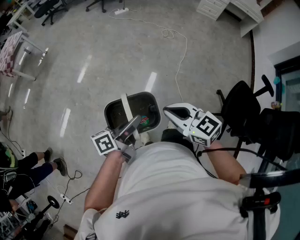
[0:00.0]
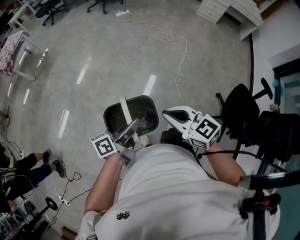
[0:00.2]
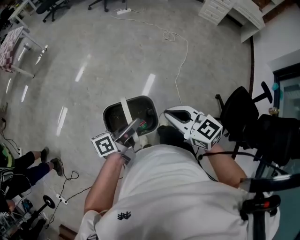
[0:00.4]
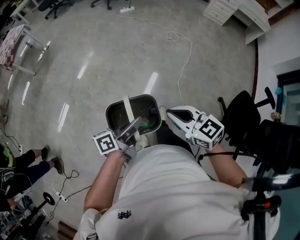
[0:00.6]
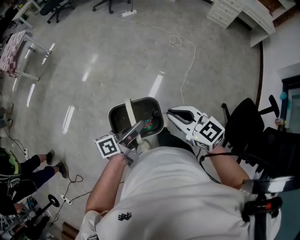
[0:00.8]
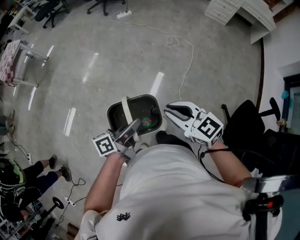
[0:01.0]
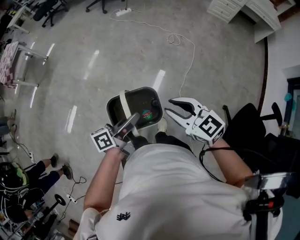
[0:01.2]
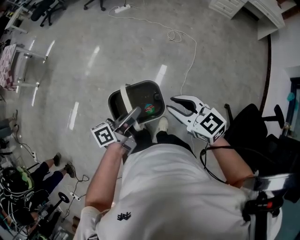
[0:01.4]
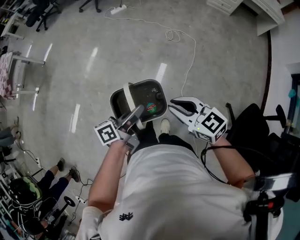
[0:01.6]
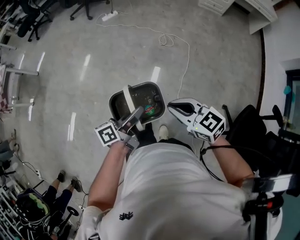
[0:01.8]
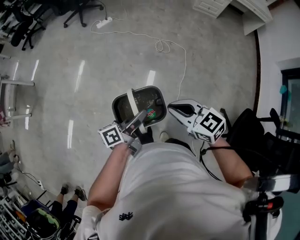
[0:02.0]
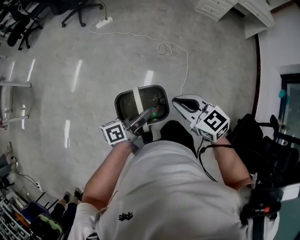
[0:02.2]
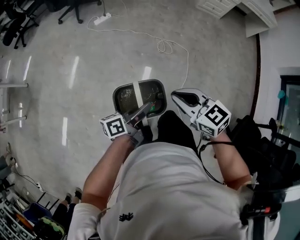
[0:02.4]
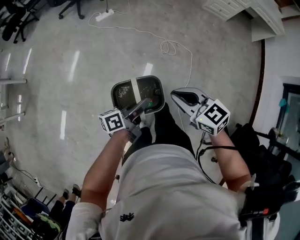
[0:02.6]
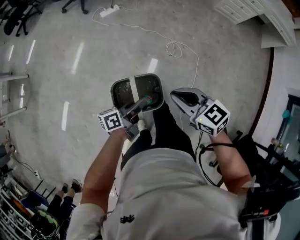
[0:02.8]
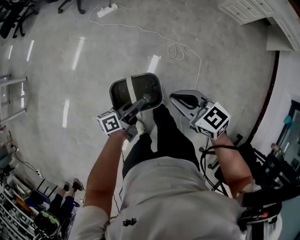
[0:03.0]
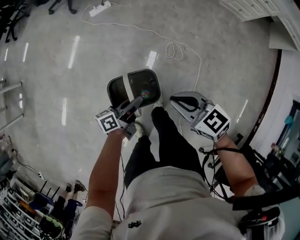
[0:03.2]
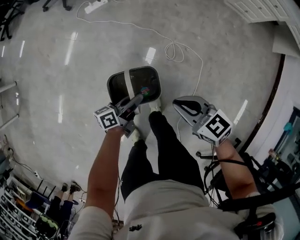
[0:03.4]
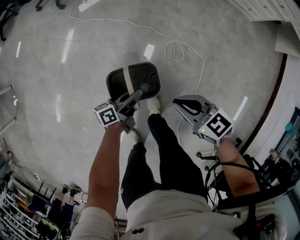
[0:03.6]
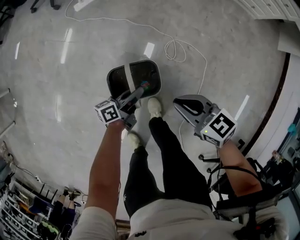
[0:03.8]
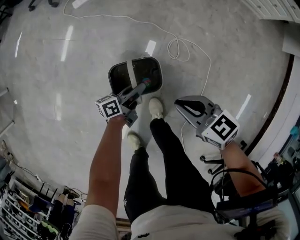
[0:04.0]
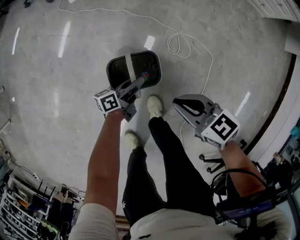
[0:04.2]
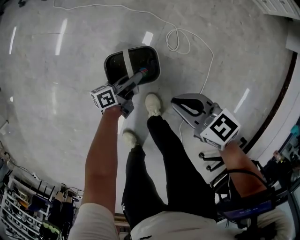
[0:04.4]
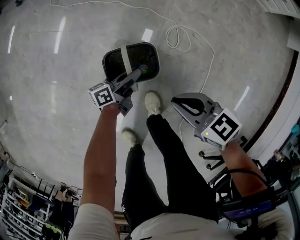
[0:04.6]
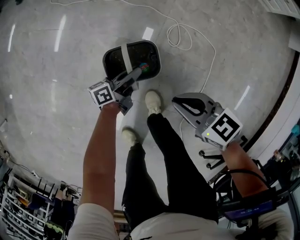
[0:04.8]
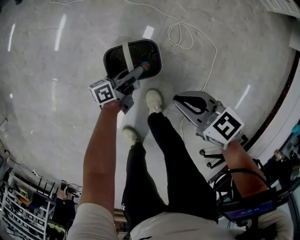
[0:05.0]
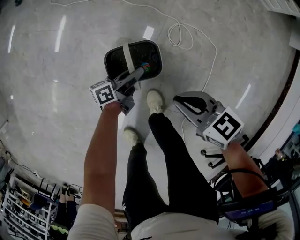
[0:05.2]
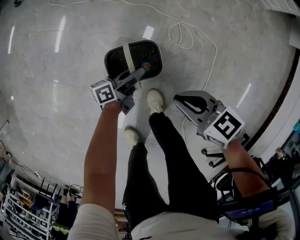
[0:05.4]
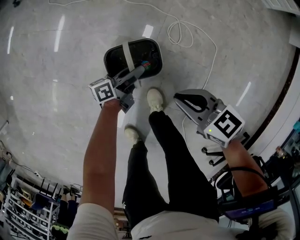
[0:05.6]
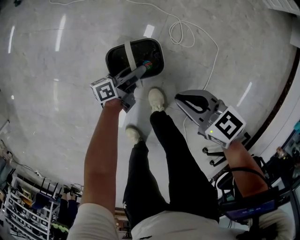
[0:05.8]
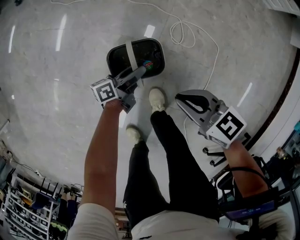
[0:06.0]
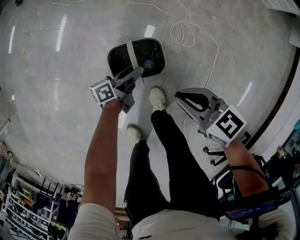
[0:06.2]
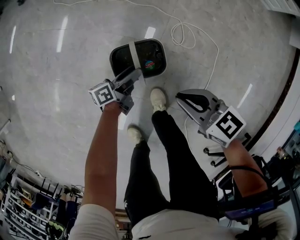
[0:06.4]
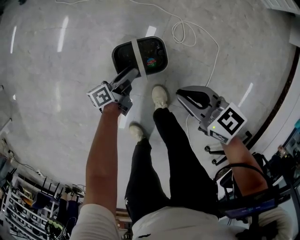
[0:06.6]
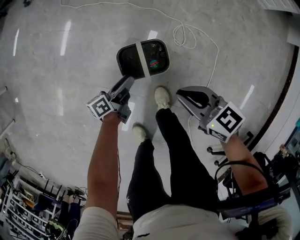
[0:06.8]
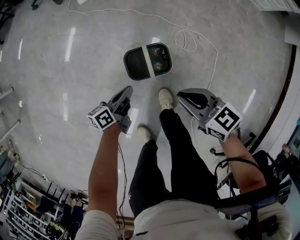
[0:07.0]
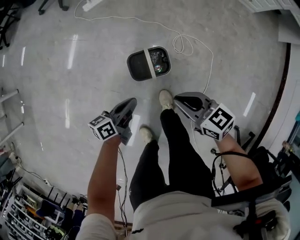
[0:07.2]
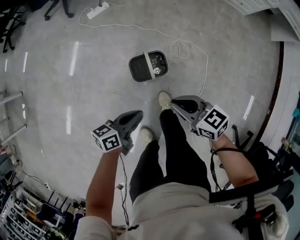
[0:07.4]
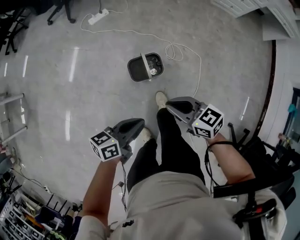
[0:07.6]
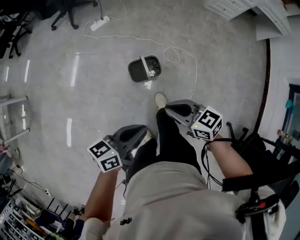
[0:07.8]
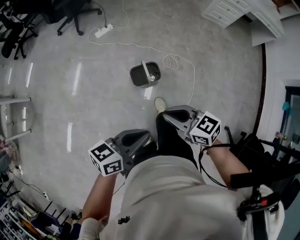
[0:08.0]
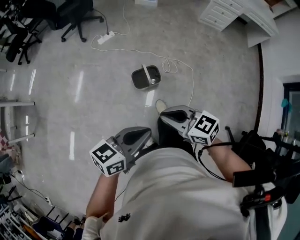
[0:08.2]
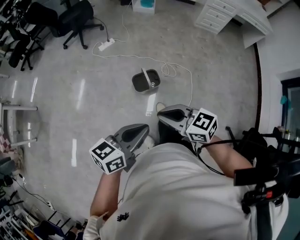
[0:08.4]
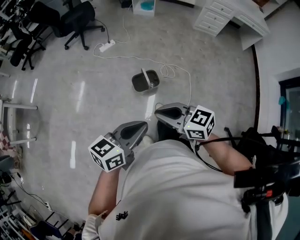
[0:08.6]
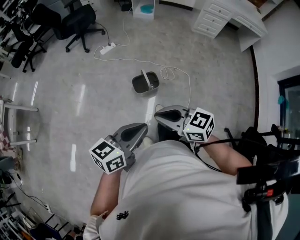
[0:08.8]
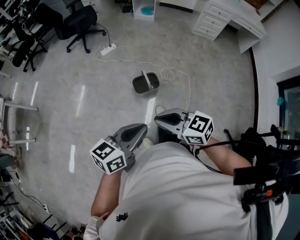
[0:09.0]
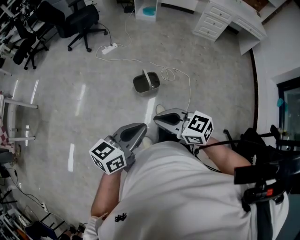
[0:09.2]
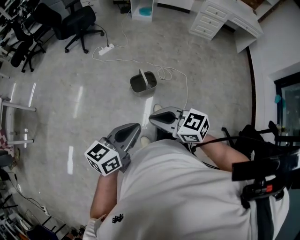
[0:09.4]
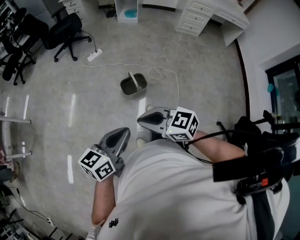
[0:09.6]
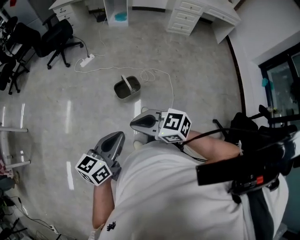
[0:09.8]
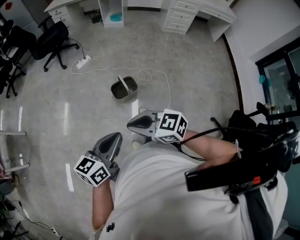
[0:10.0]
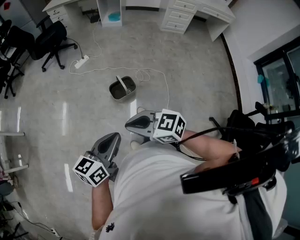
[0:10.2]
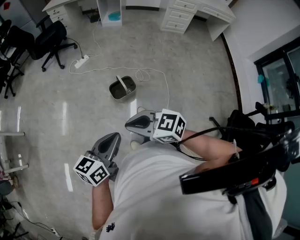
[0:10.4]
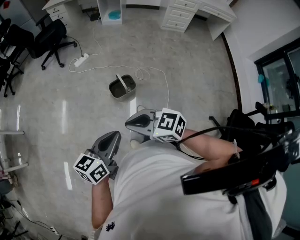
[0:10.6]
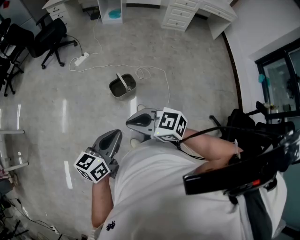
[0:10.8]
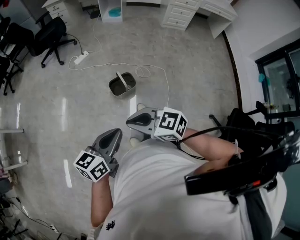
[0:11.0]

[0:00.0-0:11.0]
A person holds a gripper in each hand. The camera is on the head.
0:00.0 to 0:01.6: The two grippers go approximately 35 cm forward.
0:01.6 to 0:03.2: The pair of grippers is taken forward, roughly 50 cm. The left gripper is displaced downward by roughly 25 cm.
0:03.2 to 0:04.8: Both grippers travel together downward, some 30 cm.
0:04.8 to 0:06.2: The left gripper opens its fingers.
0:06.2 to 0:07.8: The left gripper moves upward, about 50 cm, swivels about 30 degrees, and closes. The right gripper moves upward, about 30 cm.
0:07.8 to 0:09.4: The right gripper ends up roughly 30 cm from where it was. The left gripper changes place by some 25 cm, and turns by roughly 20 degrees.
0:09.4 to 0:11.0: The grippers stay close to where they were, moving slightly.

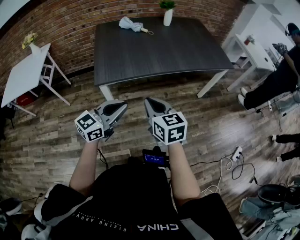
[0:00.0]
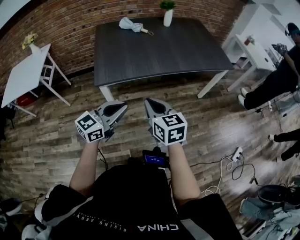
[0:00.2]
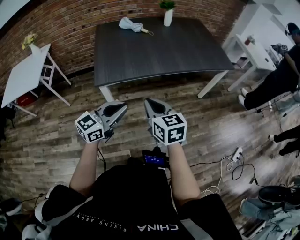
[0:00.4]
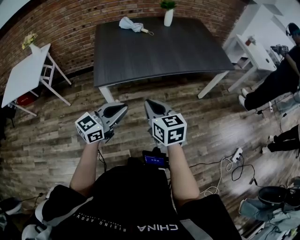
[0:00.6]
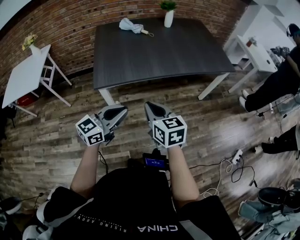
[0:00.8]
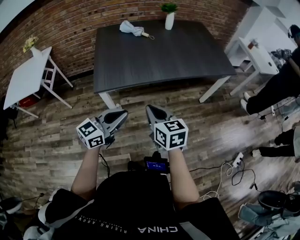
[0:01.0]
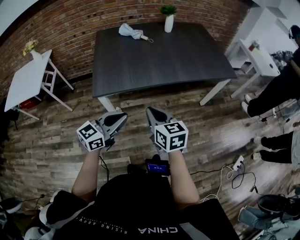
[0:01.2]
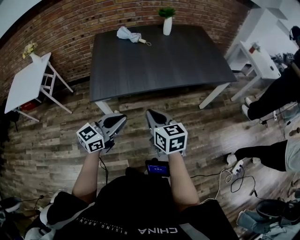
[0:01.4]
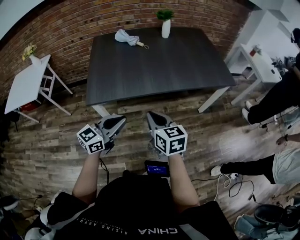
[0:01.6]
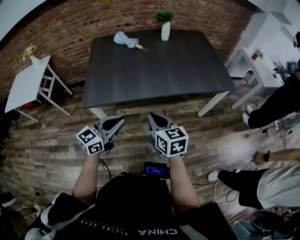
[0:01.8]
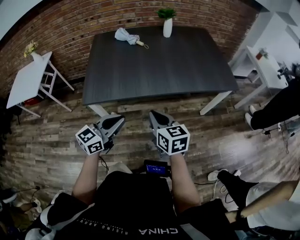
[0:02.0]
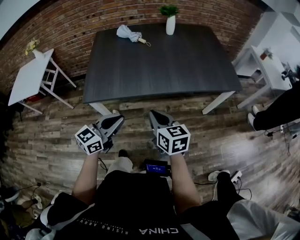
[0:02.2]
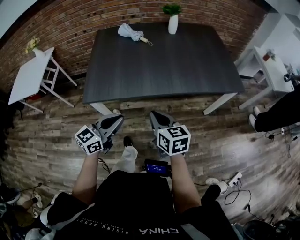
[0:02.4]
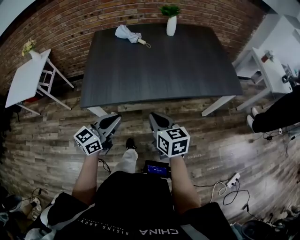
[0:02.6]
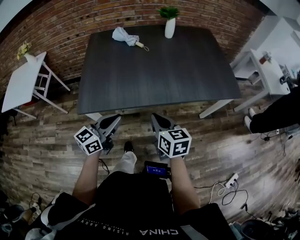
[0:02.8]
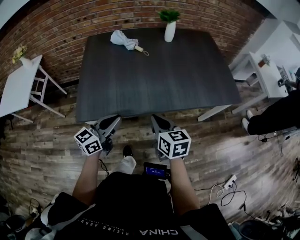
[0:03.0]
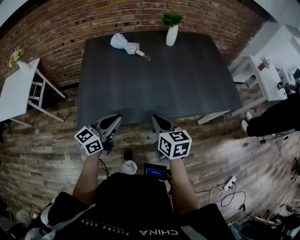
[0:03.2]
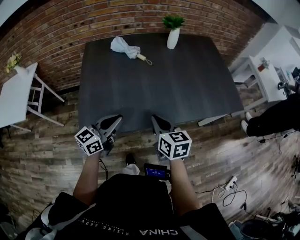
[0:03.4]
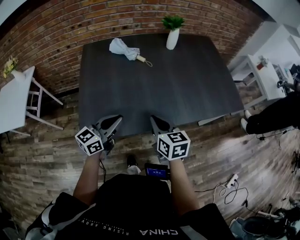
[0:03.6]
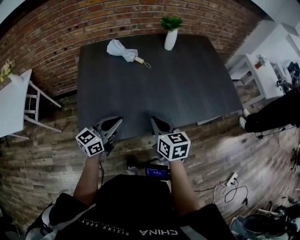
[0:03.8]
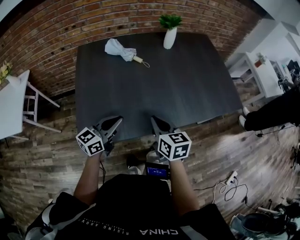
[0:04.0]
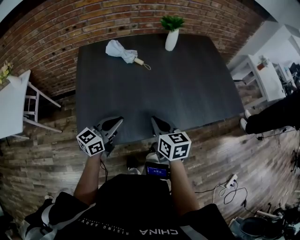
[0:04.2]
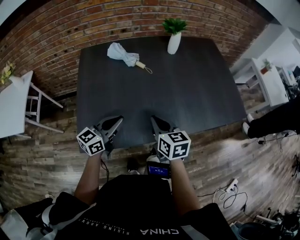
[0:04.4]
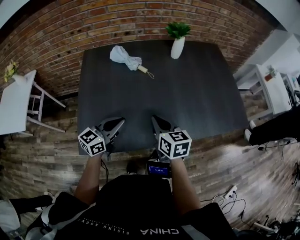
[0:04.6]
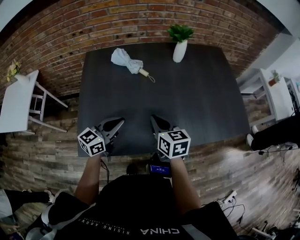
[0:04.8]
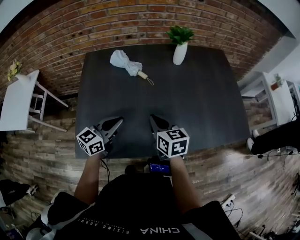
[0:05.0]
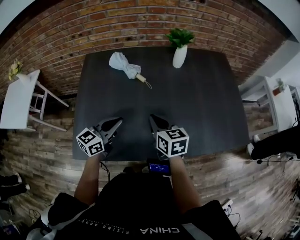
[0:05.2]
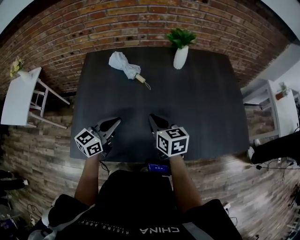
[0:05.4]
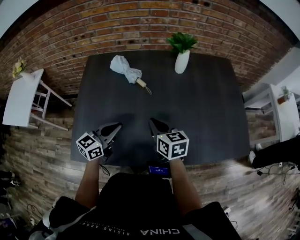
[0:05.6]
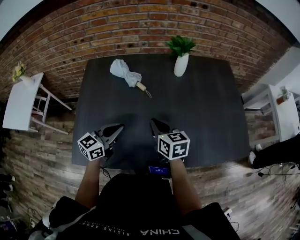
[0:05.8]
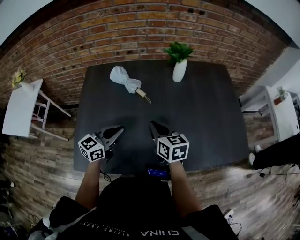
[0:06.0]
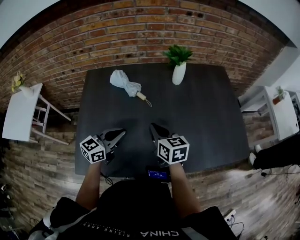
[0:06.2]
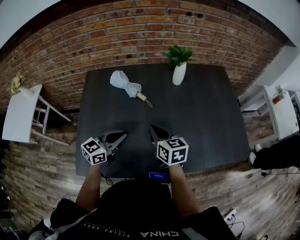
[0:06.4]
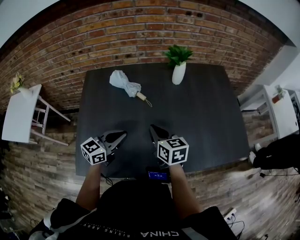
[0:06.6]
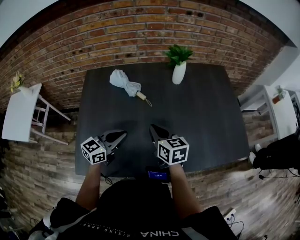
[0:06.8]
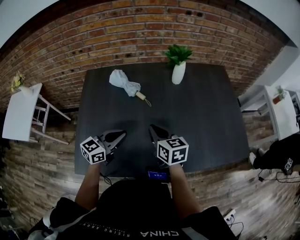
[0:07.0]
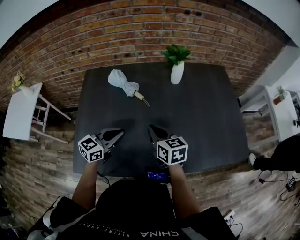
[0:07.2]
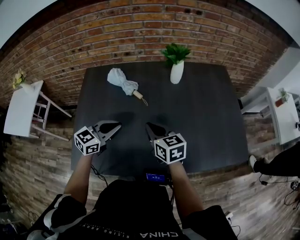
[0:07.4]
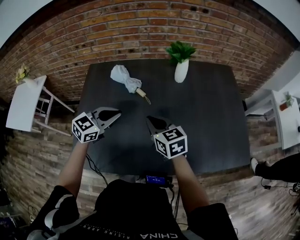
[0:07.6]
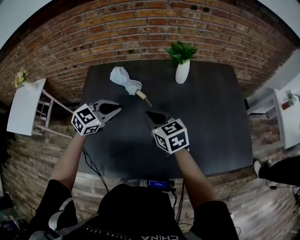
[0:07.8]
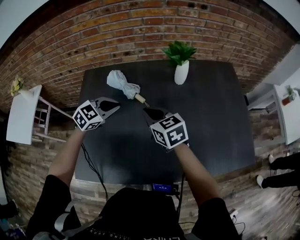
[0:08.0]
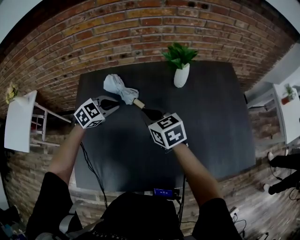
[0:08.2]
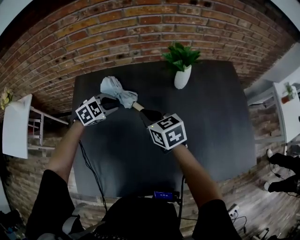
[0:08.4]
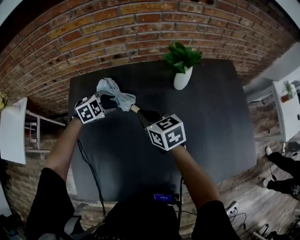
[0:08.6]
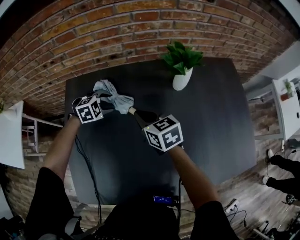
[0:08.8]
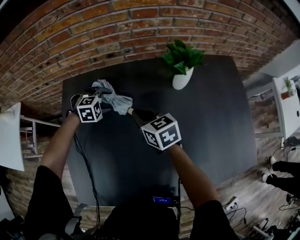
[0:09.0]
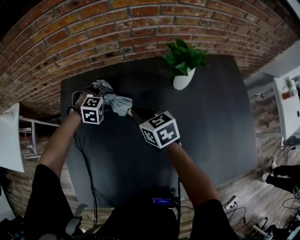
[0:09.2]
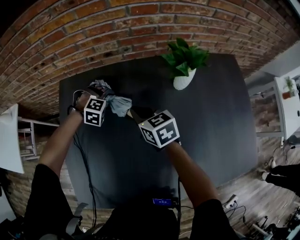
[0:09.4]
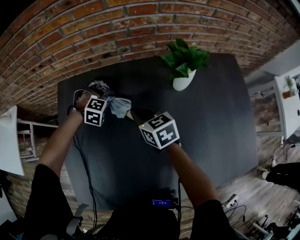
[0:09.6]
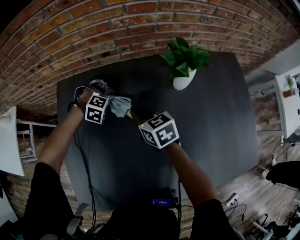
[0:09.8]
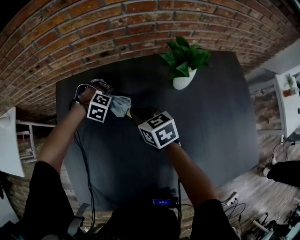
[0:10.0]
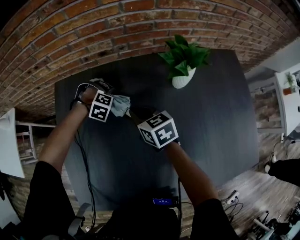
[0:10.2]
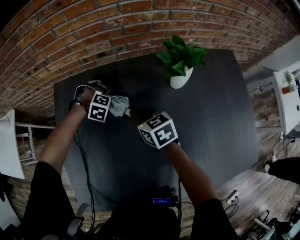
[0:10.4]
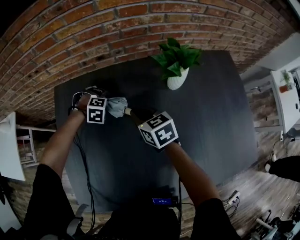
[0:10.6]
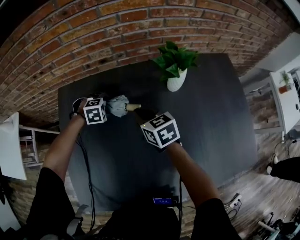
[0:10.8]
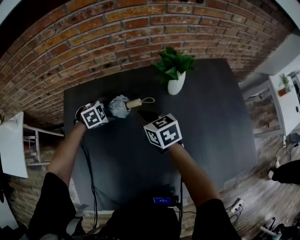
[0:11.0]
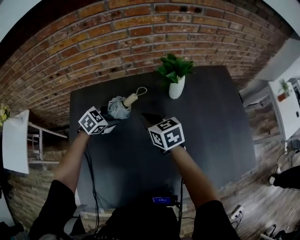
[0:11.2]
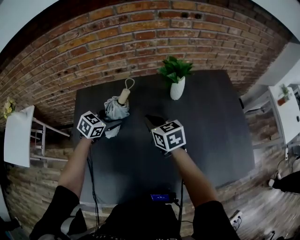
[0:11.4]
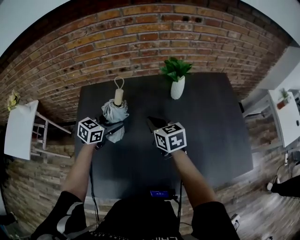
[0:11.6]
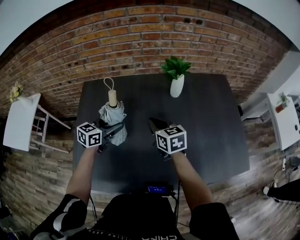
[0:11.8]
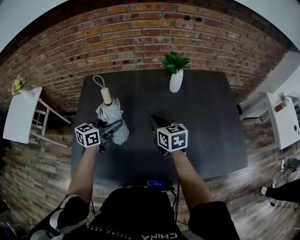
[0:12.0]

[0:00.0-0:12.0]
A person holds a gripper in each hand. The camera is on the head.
0:00.0 to 0:01.6: The two grippers go roughly 15 cm forward and to the right.
0:01.6 to 0:03.0: The two grippers go some 15 cm forward.
0:03.0 to 0:04.4: Both grippers travel together forward and to the left, approximately 20 cm.
0:04.4 to 0:06.0: Both grippers move forward, some 15 cm.
0:06.0 to 0:07.6: The left gripper travels forward by some 5 cm, and turns by approximately 20 degrees.
0:07.6 to 0:09.0: The left gripper travels forward and downward by some 35 cm, angles its fingers downward, by some 40 degrees, and opens up; the right gripper heads forward, covering some 20 cm.
0:09.0 to 0:10.4: The left gripper heads downward, covering roughly 5 cm, and changes its angle by about 30 degrees. The right gripper changes place by roughly 5 cm.
0:10.4 to 0:12.0: The left gripper ends up approximately 35 cm from where it was, and tilts its fingers approximately 70 degrees upward, while the right gripper shifts by about 20 cm.

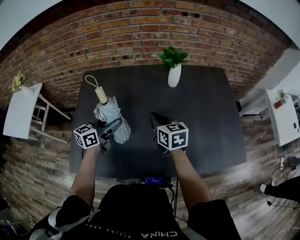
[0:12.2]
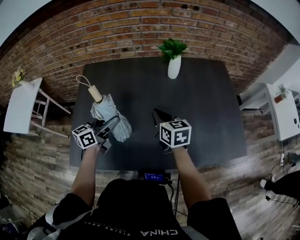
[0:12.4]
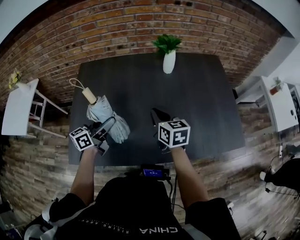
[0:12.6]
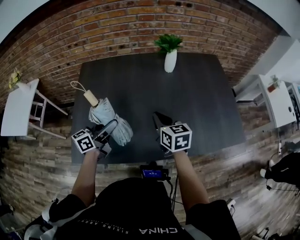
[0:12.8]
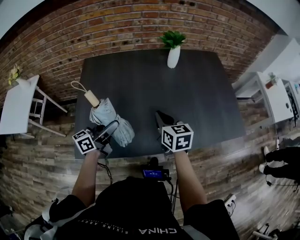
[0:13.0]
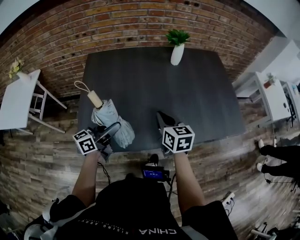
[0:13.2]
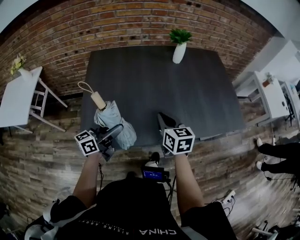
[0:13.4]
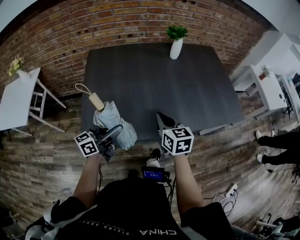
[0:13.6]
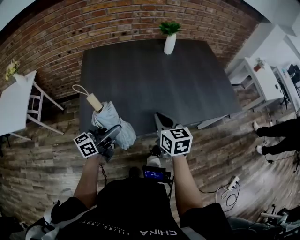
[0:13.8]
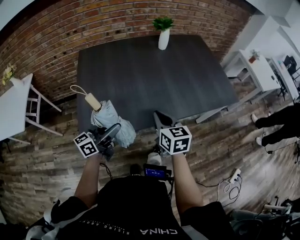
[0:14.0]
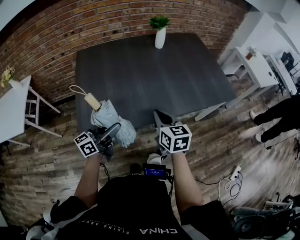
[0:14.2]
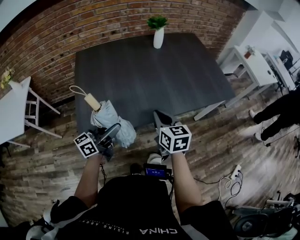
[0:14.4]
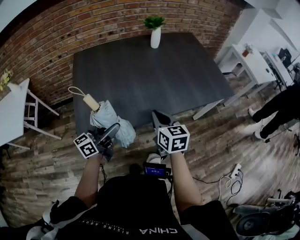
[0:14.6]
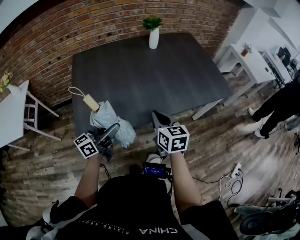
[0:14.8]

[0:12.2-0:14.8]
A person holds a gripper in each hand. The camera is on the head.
0:12.2 to 0:13.4: Both grippers move backward, approximately 20 cm.
0:13.4 to 0:14.8: The right gripper shifts roughly 15 cm backward and to the right. Meanwhile the left gripper shifts approximately 10 cm backward.
